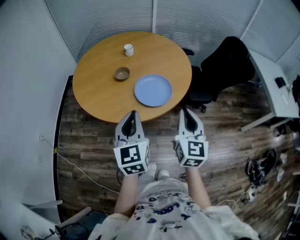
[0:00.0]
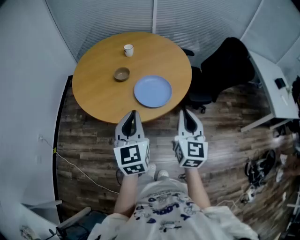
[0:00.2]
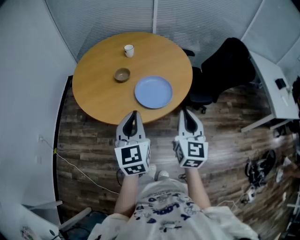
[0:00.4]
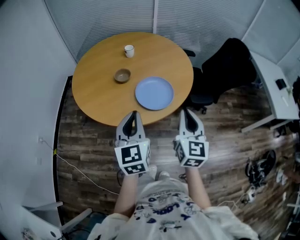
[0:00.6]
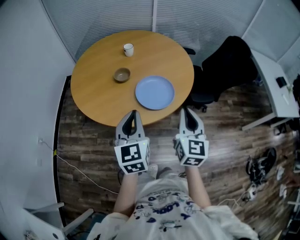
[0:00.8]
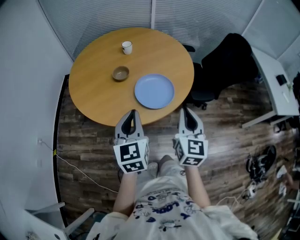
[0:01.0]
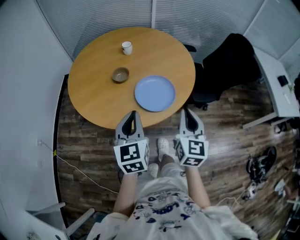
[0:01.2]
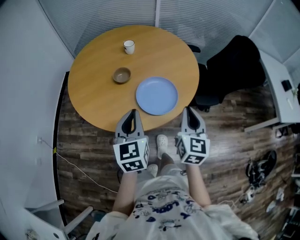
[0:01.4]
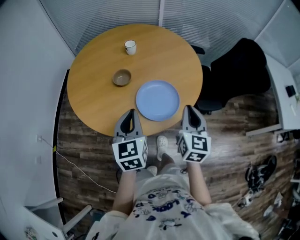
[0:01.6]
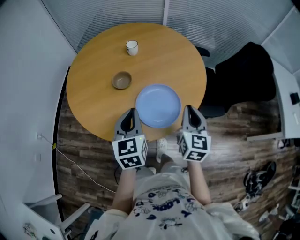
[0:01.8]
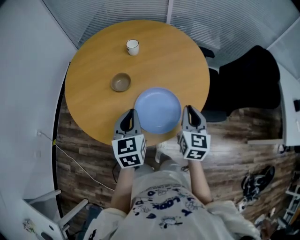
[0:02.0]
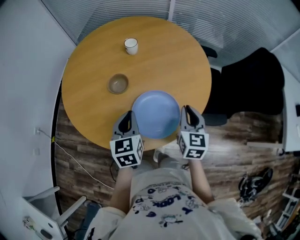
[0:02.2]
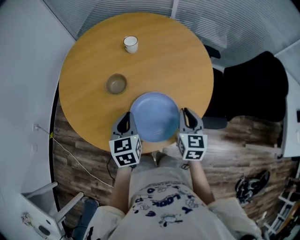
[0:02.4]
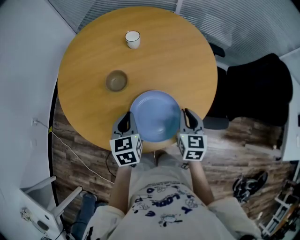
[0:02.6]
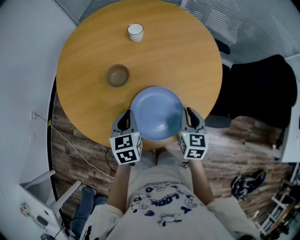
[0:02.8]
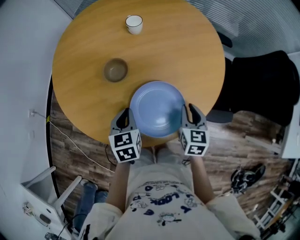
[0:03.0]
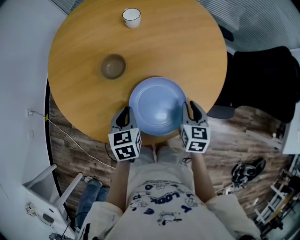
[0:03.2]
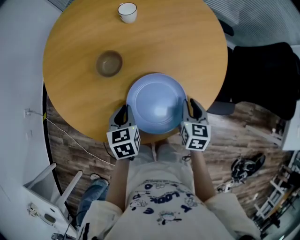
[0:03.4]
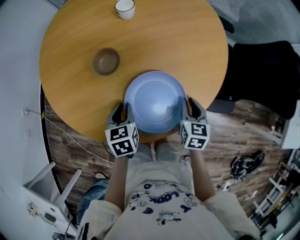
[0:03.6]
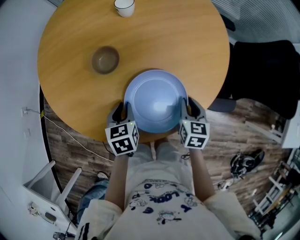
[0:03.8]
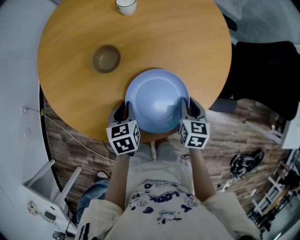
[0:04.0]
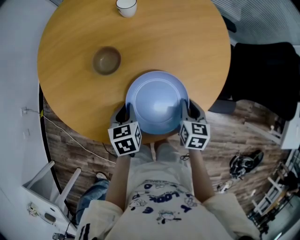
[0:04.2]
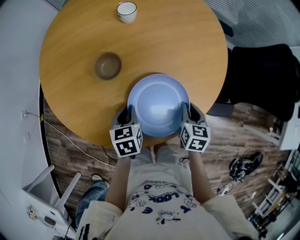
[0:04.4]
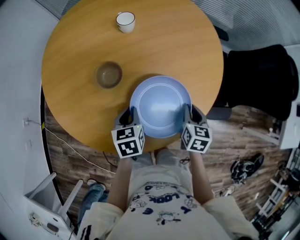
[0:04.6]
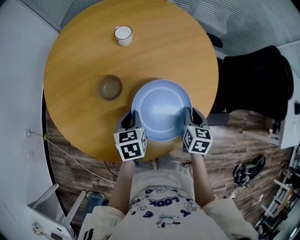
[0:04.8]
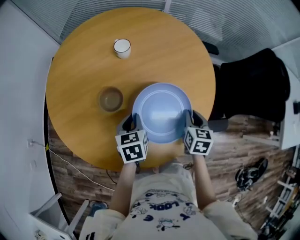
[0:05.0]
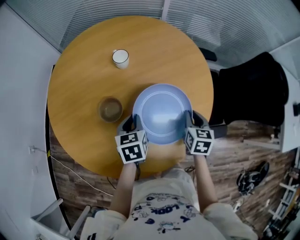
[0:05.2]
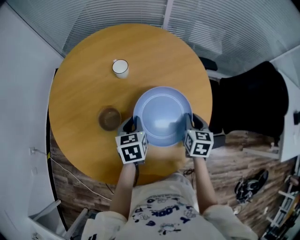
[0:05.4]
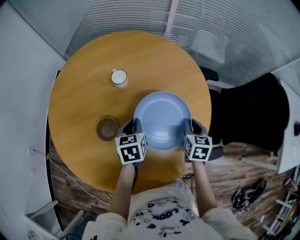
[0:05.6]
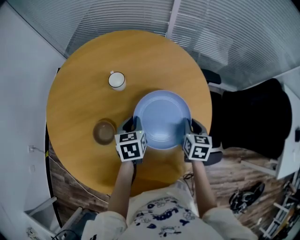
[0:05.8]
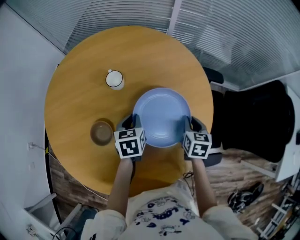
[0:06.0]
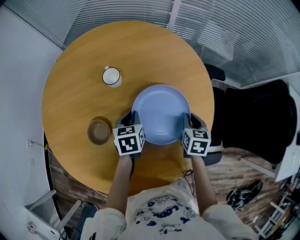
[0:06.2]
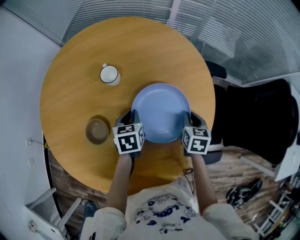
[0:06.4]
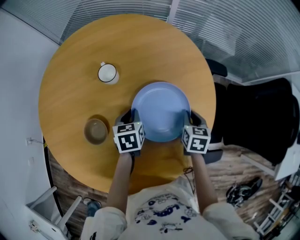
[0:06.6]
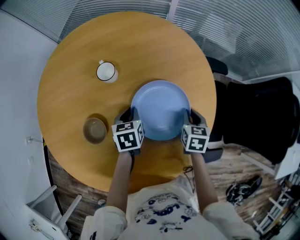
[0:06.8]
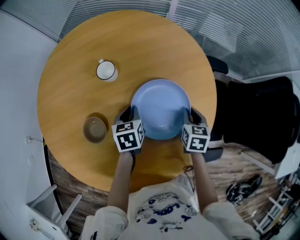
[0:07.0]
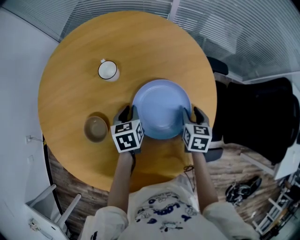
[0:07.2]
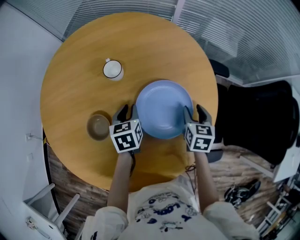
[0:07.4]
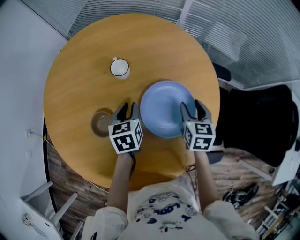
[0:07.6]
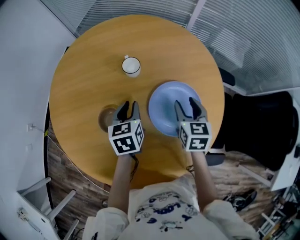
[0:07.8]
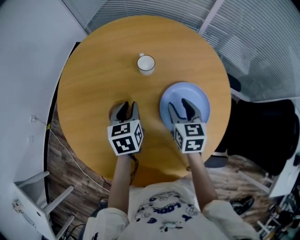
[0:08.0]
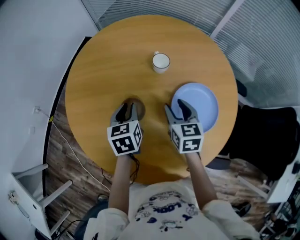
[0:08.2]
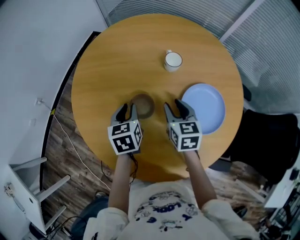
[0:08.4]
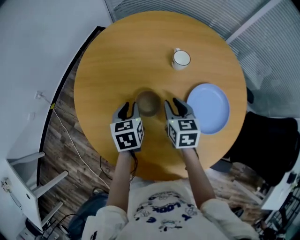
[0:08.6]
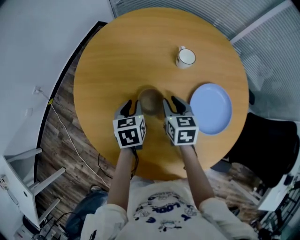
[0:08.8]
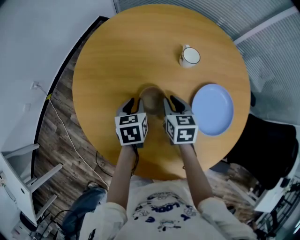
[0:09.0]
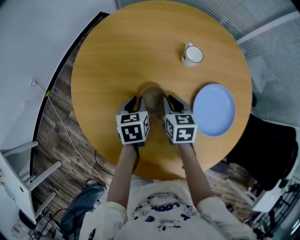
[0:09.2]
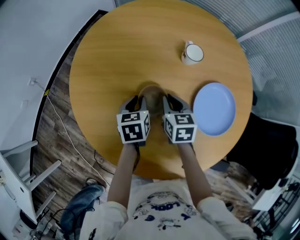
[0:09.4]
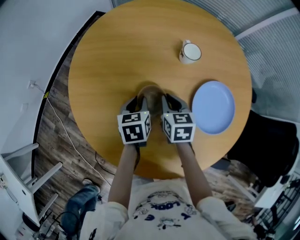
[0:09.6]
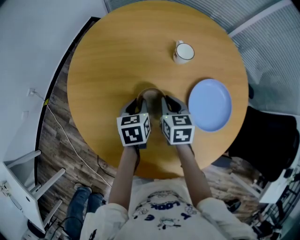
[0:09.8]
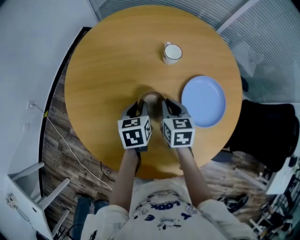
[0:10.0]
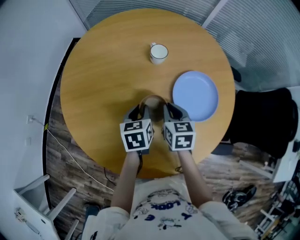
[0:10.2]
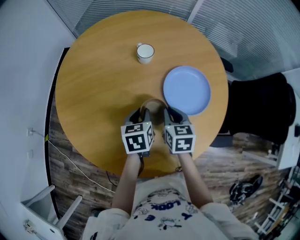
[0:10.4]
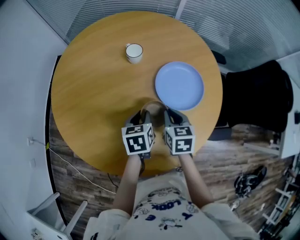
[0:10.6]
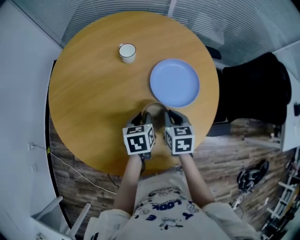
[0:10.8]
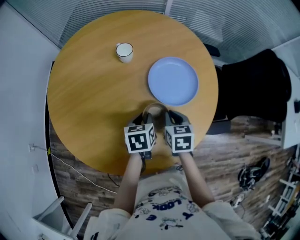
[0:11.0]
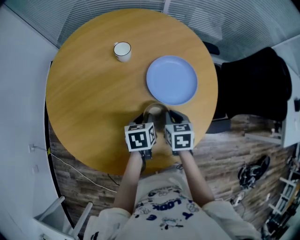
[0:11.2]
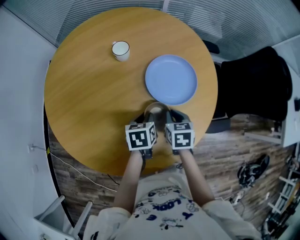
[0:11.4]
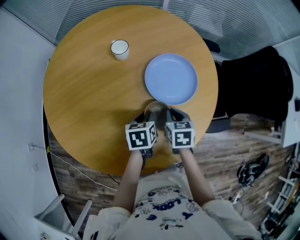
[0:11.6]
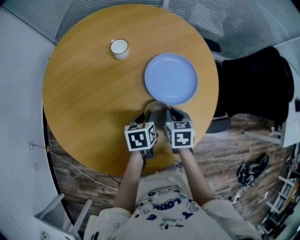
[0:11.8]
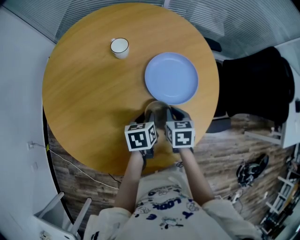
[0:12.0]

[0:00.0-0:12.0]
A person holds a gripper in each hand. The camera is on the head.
0.0 to 1.6 s: Both grippers move forward and downward, about 15 cm.
1.6 to 3.0 s: The two grippers go some 20 cm downward and forward. The left gripper rotates approximately 30 degrees, while the right gripper rotates some 30 degrees.
3.0 to 4.4 s: Both grippers move downward, about 5 cm.
4.4 to 6.0 s: Both grippers move forward, about 25 cm.
6.0 to 7.6 s: The right gripper moves approximately 5 cm, and opens its fingers.
7.6 to 9.0 s: The right gripper heads to the left, covering about 30 cm, and swivels some 20 degrees. Meanwhile the left gripper goes roughly 20 cm to the left.
9.0 to 10.4 s: The left gripper is displaced to the right by approximately 10 cm, and turns by approximately 20 degrees. The right gripper goes some 10 cm to the right and backward, and changes its angle by about 20 degrees.
10.4 to 12.0 s: The two grippers go some 10 cm to the right.

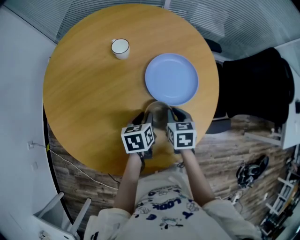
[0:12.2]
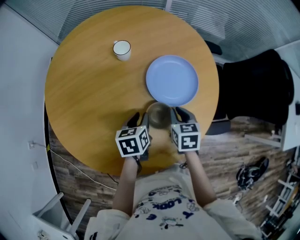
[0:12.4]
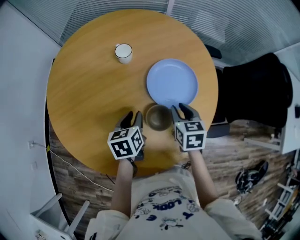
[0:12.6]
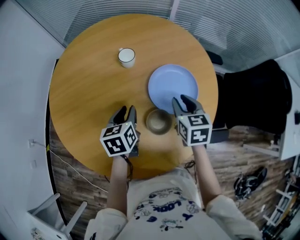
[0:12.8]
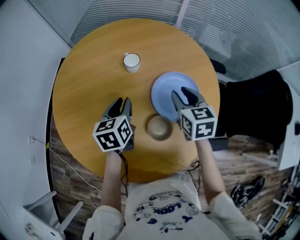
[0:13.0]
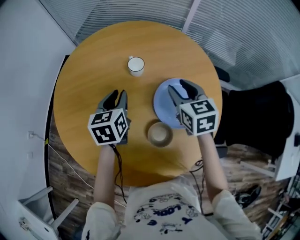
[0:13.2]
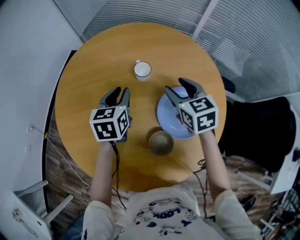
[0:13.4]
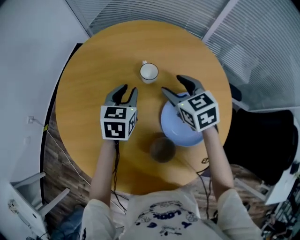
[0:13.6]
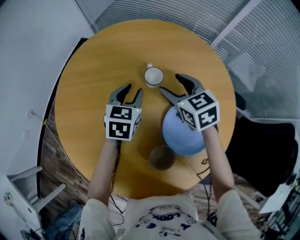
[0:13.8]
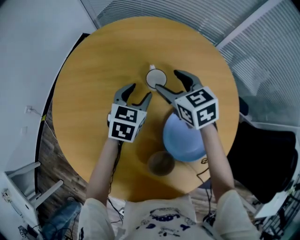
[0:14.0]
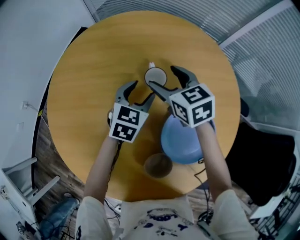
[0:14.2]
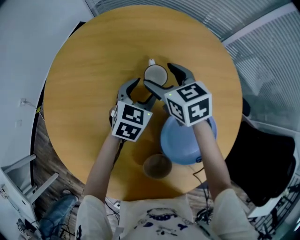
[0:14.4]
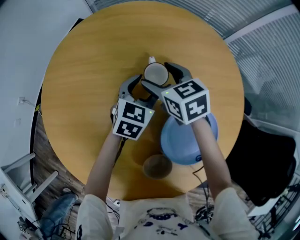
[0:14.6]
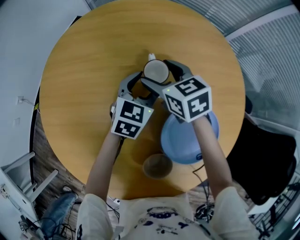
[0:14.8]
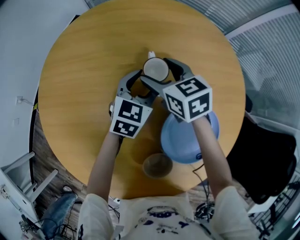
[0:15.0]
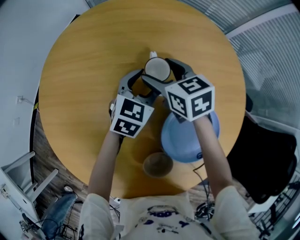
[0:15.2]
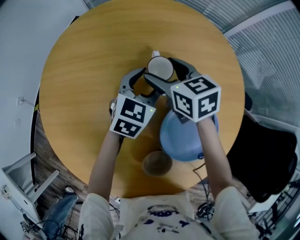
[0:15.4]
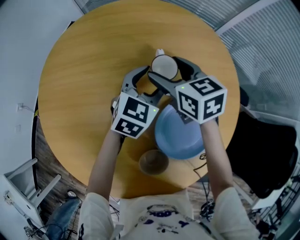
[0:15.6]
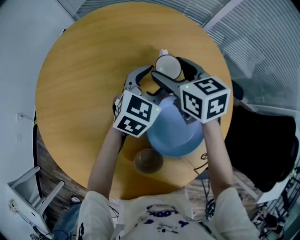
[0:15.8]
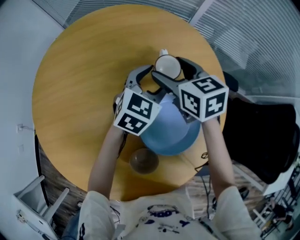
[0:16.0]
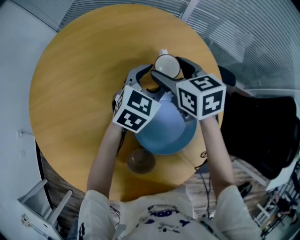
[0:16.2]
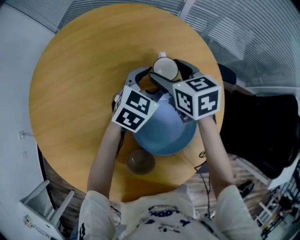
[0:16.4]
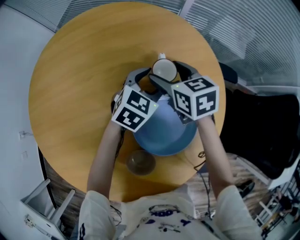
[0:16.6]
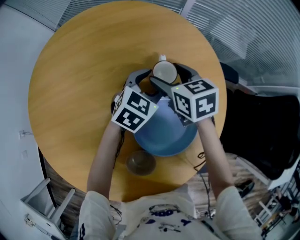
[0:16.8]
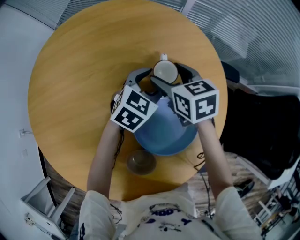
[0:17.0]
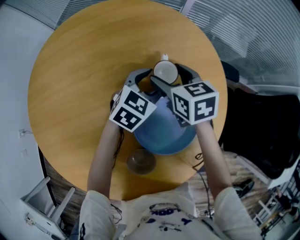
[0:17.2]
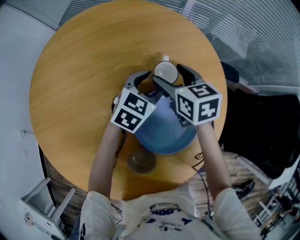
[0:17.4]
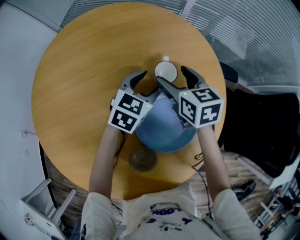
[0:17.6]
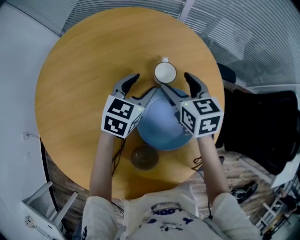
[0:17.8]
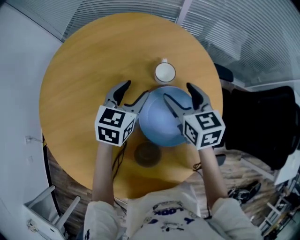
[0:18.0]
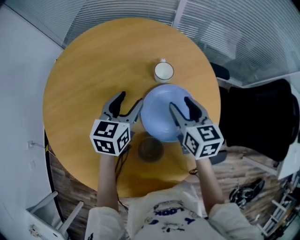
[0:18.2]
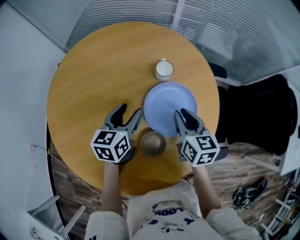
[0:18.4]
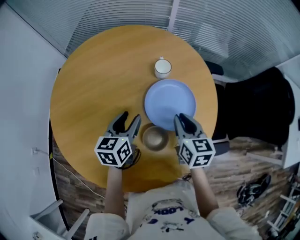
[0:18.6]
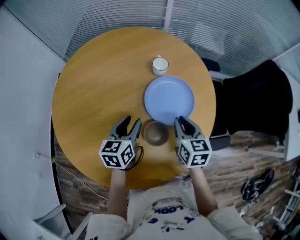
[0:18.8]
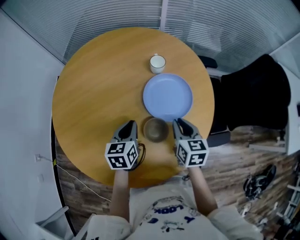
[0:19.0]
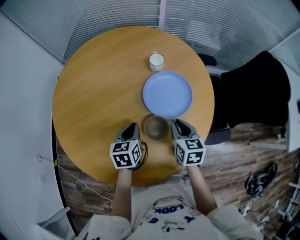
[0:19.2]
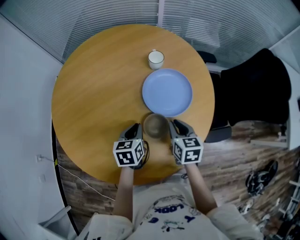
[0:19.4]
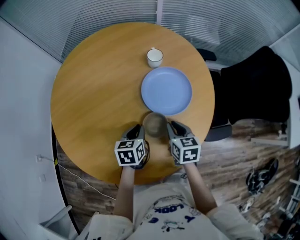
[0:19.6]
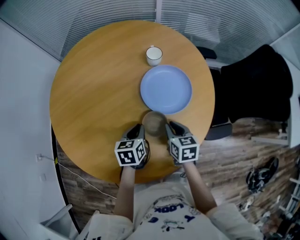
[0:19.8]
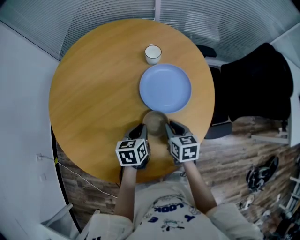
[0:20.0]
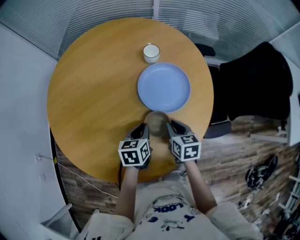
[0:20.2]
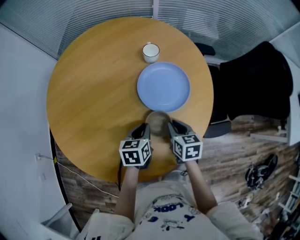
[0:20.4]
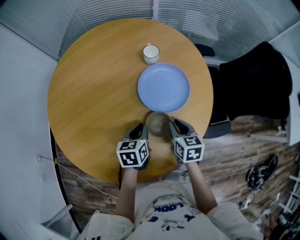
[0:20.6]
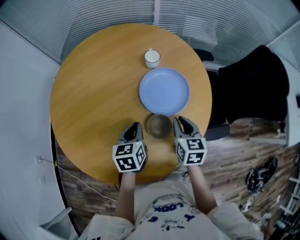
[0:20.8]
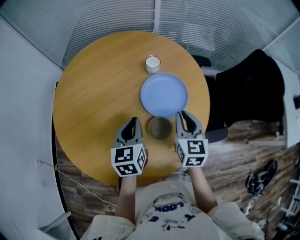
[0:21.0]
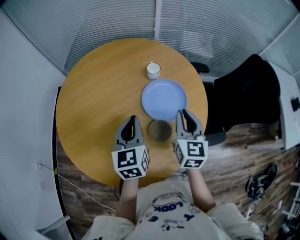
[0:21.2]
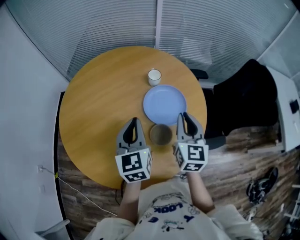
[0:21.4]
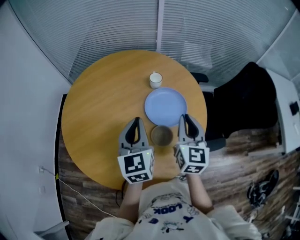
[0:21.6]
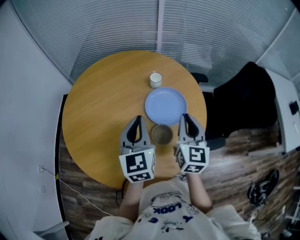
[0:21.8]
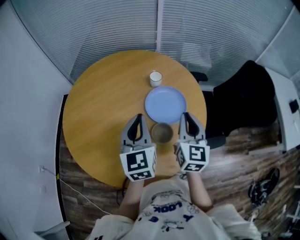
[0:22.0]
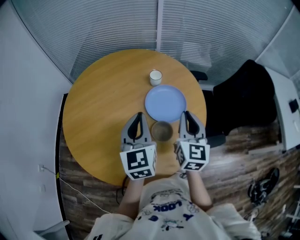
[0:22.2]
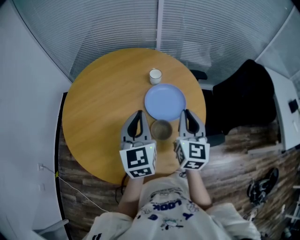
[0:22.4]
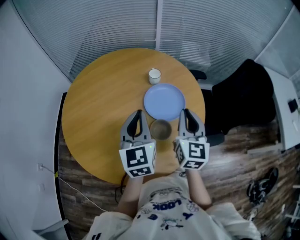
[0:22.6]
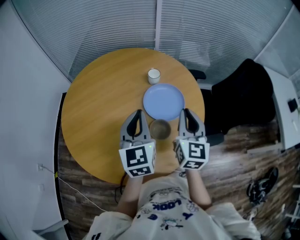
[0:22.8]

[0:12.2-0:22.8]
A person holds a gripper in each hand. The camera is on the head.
12.2 to 13.8 s: The left gripper ends up roughly 25 cm from where it was, and turns by some 30 degrees, while the right gripper moves some 30 cm, turns by some 50 degrees, and opens its fingers.
13.8 to 15.2 s: The right gripper heads downward and forward, covering roughly 10 cm. Meanwhile the left gripper moves to the right and downward, about 10 cm, and opens its fingers.
15.2 to 16.8 s: The grippers both shift to the right by approximately 20 cm. The right gripper swivels roughly 20 degrees, while the left gripper swivels roughly 30 degrees.
16.8 to 18.2 s: The left gripper travels to the left, backward and upward by about 15 cm, and swivels about 20 degrees. The right gripper moves backward and upward, approximately 15 cm, and swivels approximately 20 degrees.
18.2 to 19.8 s: Both grippers travel together backward and downward, some 20 cm. The right gripper closes up. The left gripper swivels some 20 degrees, and closes up.
19.8 to 21.2 s: The grippers both shift upward by about 20 cm. The right gripper swivels some 30 degrees. The left gripper turns by some 30 degrees.
21.2 to 22.8 s: The two grippers go approximately 5 cm upward.

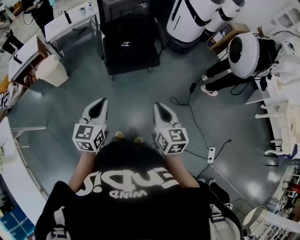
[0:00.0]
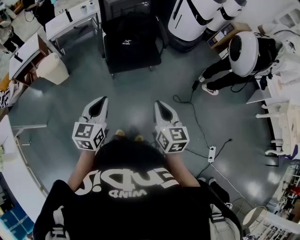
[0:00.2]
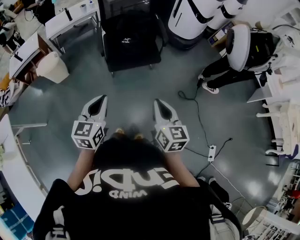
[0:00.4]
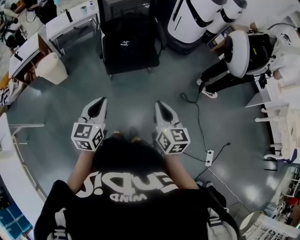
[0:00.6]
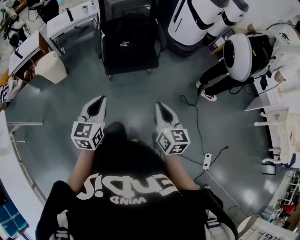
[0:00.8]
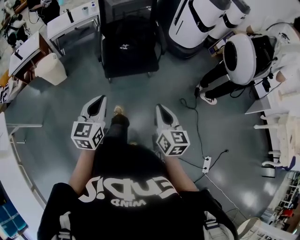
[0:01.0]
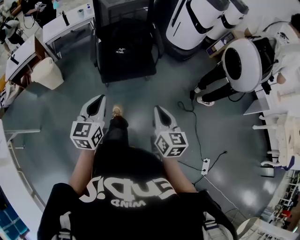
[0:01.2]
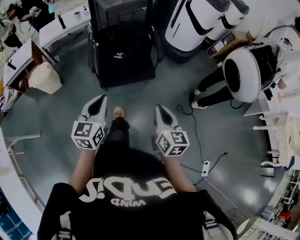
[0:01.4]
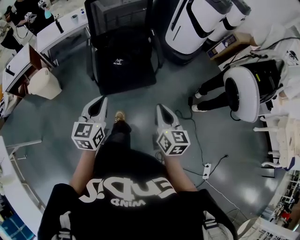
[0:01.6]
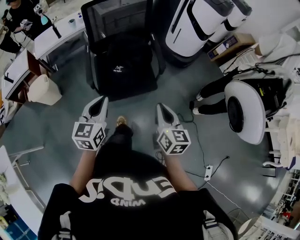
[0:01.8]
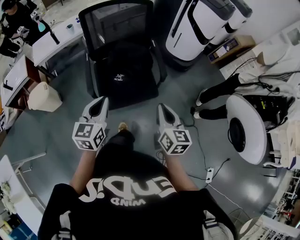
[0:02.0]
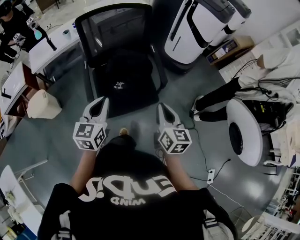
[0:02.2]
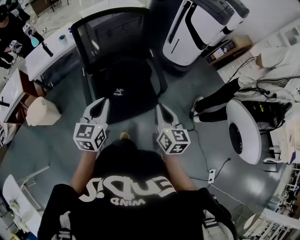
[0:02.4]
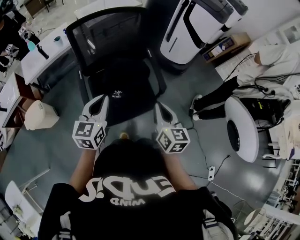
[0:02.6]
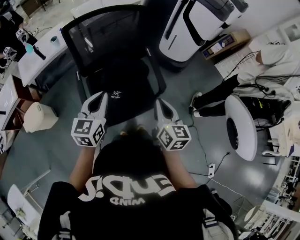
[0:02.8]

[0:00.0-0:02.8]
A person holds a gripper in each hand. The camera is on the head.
0.0 to 1.4 s: The left gripper heads forward, covering roughly 15 cm. Meanwhile the right gripper goes about 15 cm forward and to the right.
1.4 to 2.8 s: Both grippers travel together forward, approximately 40 cm.
